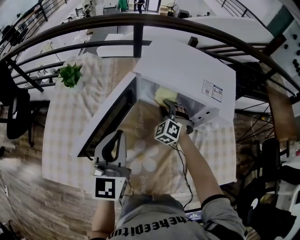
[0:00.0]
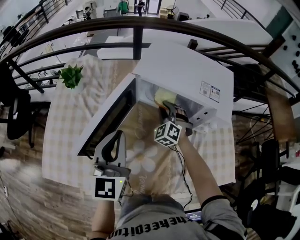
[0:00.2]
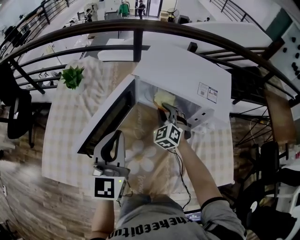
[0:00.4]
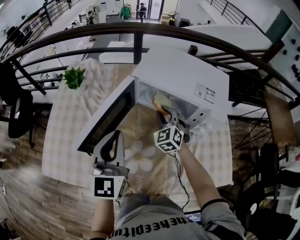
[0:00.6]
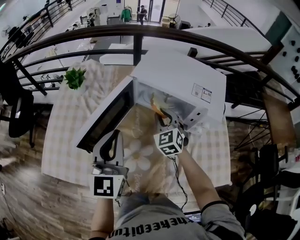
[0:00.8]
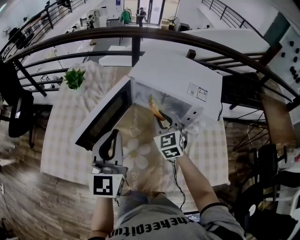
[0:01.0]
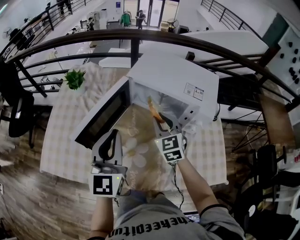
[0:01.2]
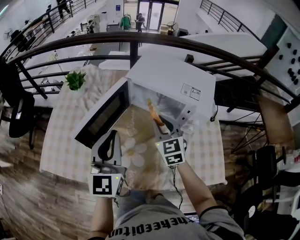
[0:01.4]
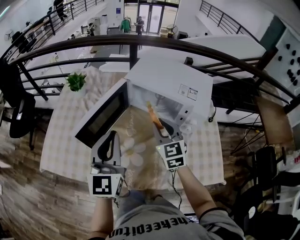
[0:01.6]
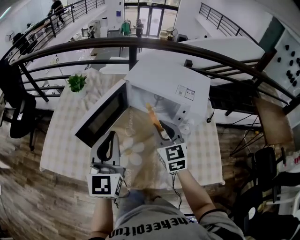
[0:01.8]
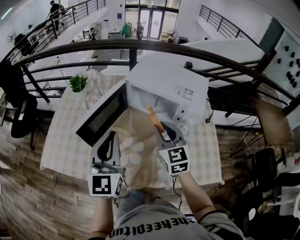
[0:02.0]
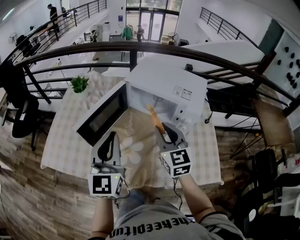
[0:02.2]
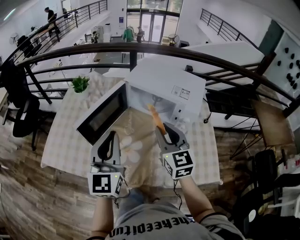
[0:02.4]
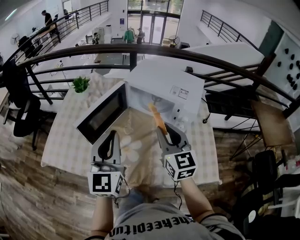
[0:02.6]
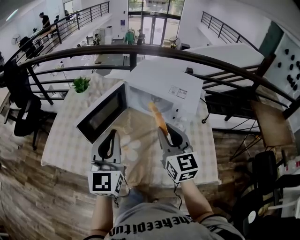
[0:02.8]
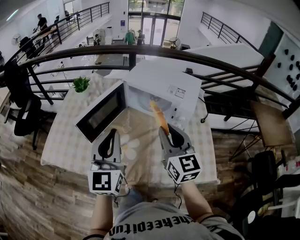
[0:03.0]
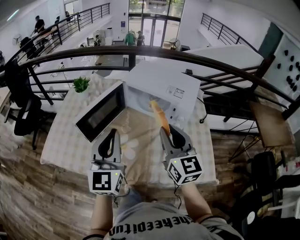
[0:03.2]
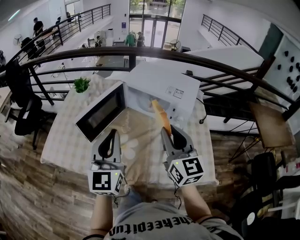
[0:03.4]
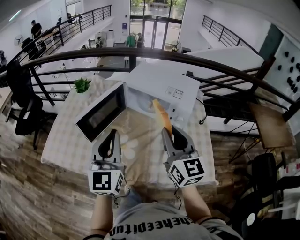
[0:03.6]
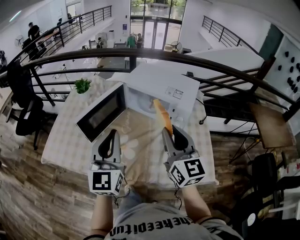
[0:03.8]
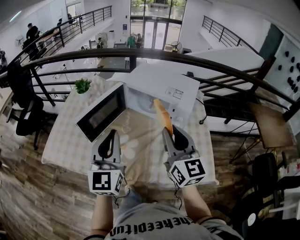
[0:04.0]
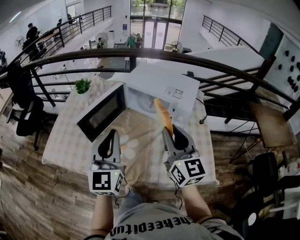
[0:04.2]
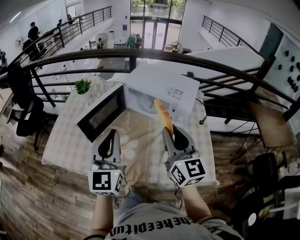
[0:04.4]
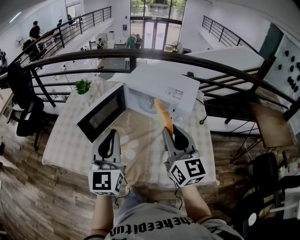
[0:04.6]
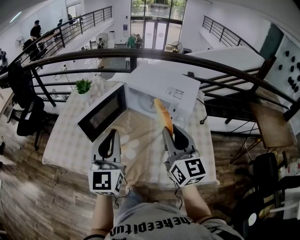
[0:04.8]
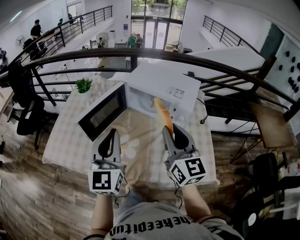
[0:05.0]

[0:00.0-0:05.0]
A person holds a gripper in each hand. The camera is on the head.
0:00.0 to 0:01.6: The left gripper travels backward and upward by approximately 10 cm. Meanwhile the right gripper heads upward and backward, covering approximately 25 cm, and turns by about 50 degrees.
0:01.6 to 0:03.4: The right gripper shifts approximately 20 cm backward, upward and to the right, and changes its angle by some 20 degrees; the left gripper is displaced backward by about 10 cm.
0:03.4 to 0:05.0: The grippers make only small movements.

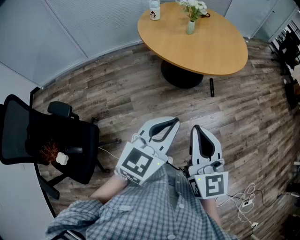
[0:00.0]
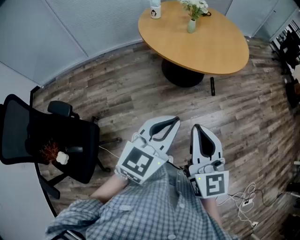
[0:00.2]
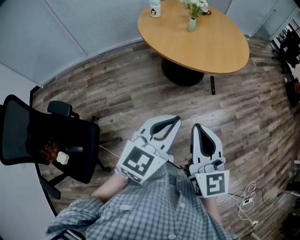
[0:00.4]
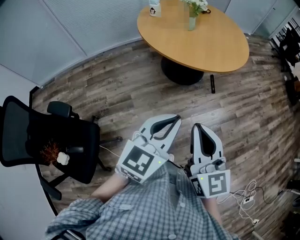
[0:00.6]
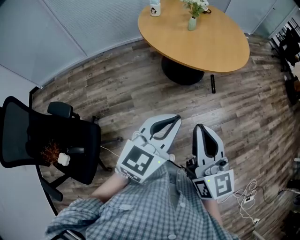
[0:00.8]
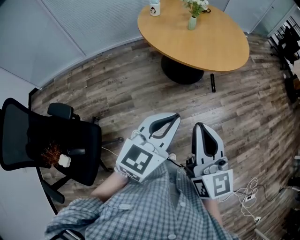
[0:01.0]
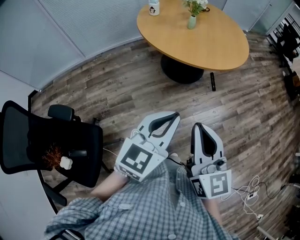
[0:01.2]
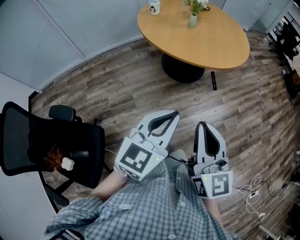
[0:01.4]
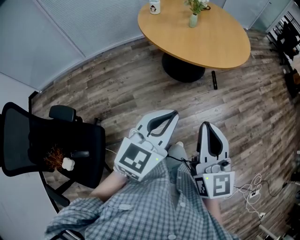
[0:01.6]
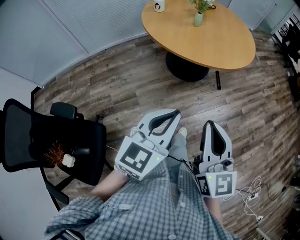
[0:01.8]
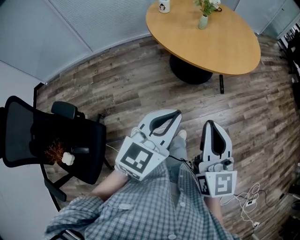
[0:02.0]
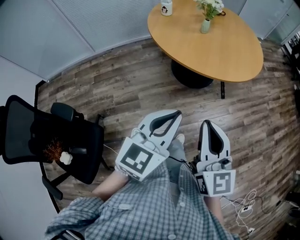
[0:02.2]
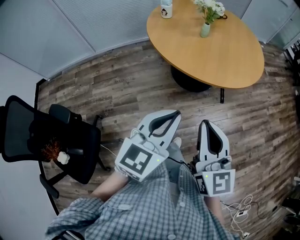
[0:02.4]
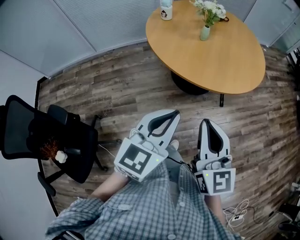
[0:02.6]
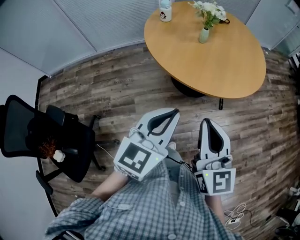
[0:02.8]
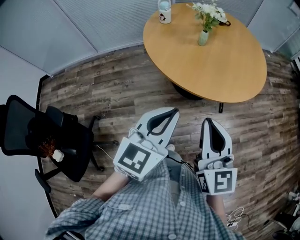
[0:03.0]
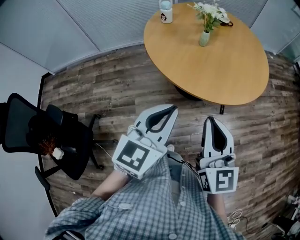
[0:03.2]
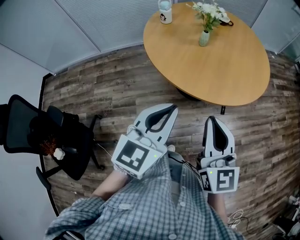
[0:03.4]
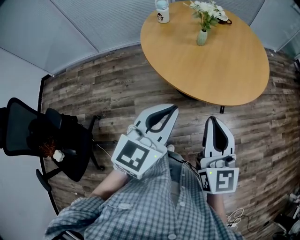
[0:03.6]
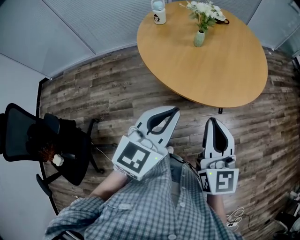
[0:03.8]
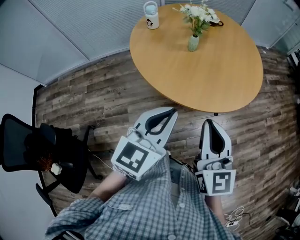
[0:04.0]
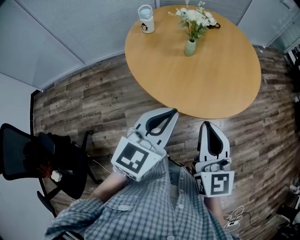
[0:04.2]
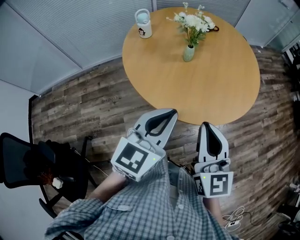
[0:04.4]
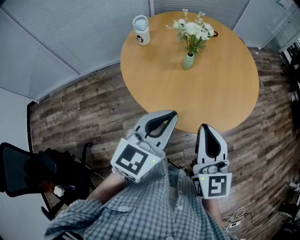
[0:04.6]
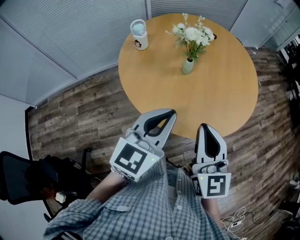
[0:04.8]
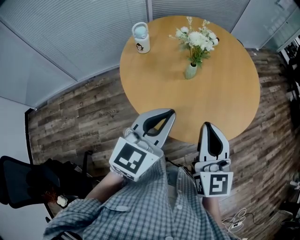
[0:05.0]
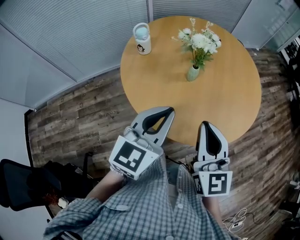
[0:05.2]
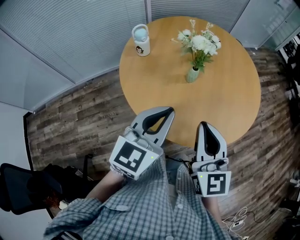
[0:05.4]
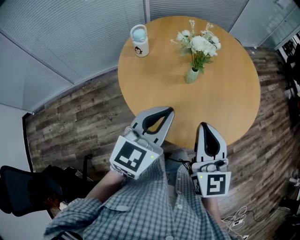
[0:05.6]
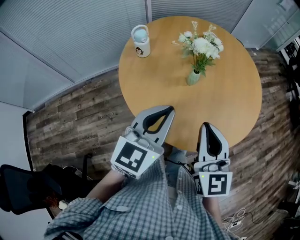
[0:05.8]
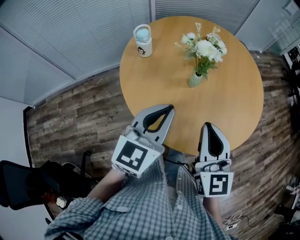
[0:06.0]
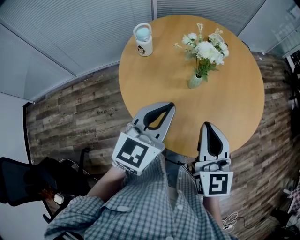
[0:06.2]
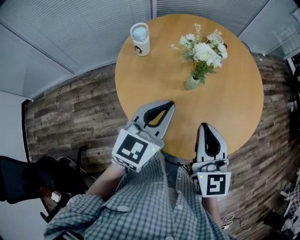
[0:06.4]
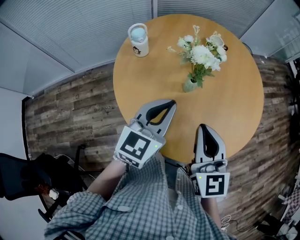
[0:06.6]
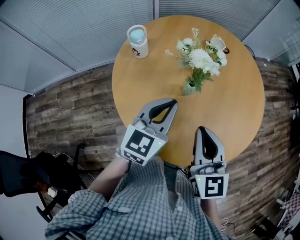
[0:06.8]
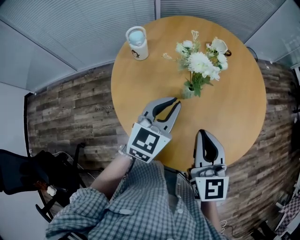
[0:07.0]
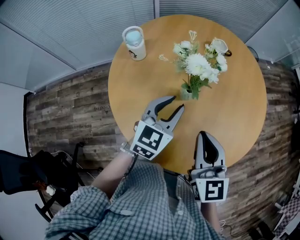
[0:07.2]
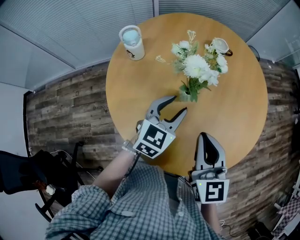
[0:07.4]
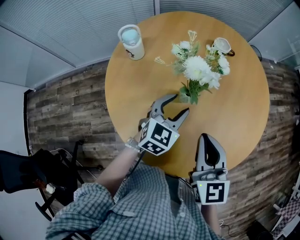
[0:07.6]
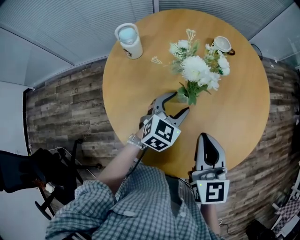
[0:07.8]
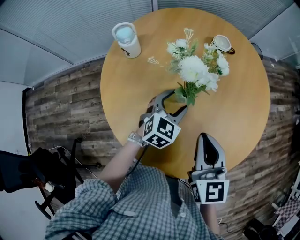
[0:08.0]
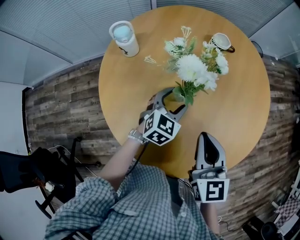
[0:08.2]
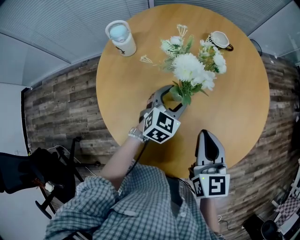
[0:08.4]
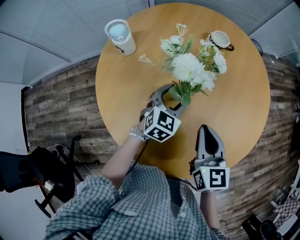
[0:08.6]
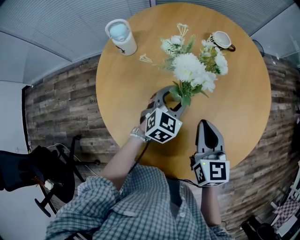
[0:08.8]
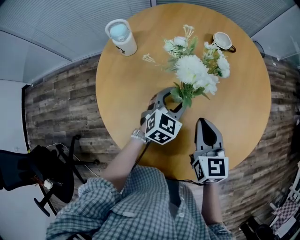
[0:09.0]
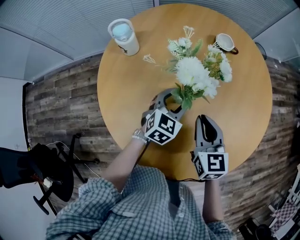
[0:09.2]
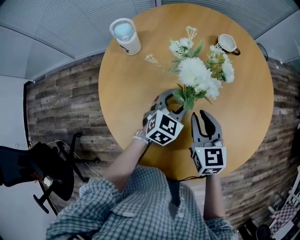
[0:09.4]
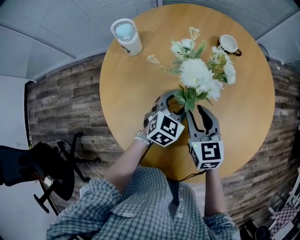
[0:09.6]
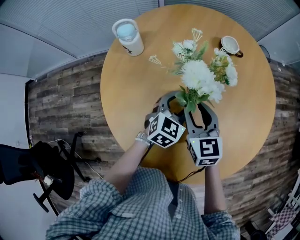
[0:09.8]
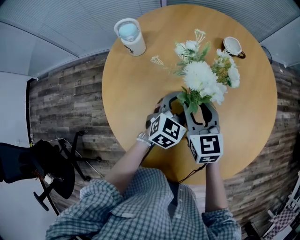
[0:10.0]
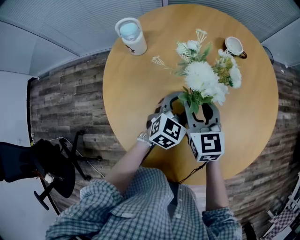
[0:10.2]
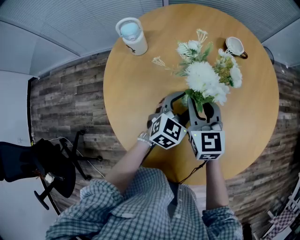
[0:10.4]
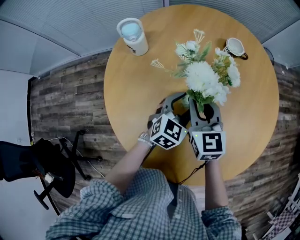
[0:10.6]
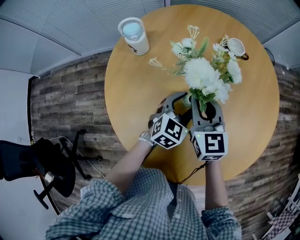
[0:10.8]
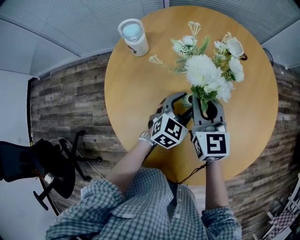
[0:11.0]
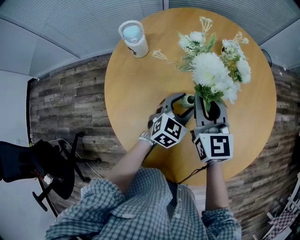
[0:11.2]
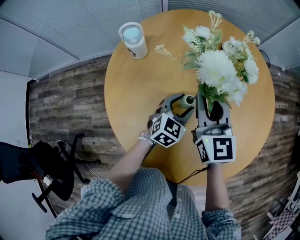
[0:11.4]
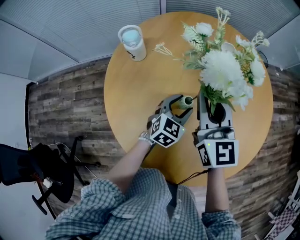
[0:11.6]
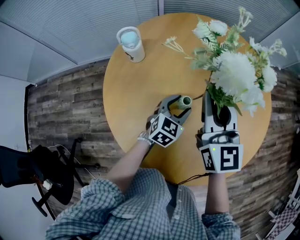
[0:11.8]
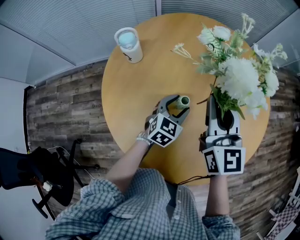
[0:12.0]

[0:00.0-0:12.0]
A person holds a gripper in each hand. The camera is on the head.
0:00.0 to 0:01.6: The left gripper heads to the left, covering some 5 cm.
0:01.6 to 0:03.0: The grippers both shift forward and to the right by approximately 25 cm.
0:03.0 to 0:04.4: The two grippers go roughly 15 cm forward.
0:04.4 to 0:06.0: The grippers both shift forward and to the left by approximately 20 cm.
0:06.0 to 0:07.6: The right gripper moves forward, to the right and downward, approximately 15 cm; the left gripper travels forward, downward and to the right by roughly 25 cm, and opens up.
0:07.6 to 0:09.0: The right gripper moves downward and forward, roughly 10 cm. Meanwhile the left gripper goes some 5 cm downward.
0:09.0 to 0:10.4: The right gripper goes roughly 10 cm forward and to the left, and opens its fingers.
0:10.4 to 0:12.0: The right gripper goes about 15 cm upward.

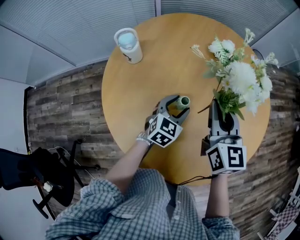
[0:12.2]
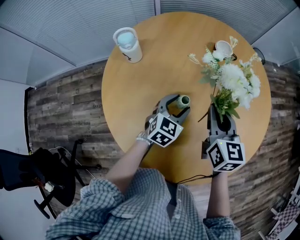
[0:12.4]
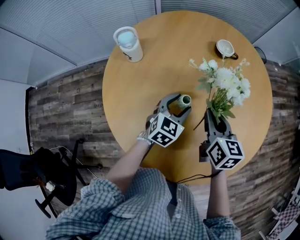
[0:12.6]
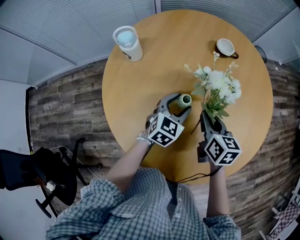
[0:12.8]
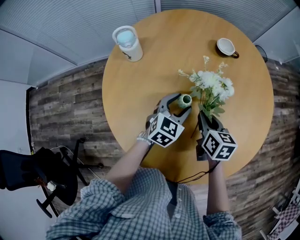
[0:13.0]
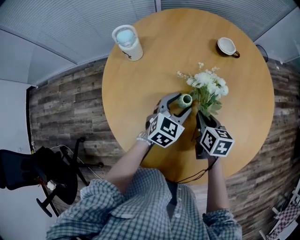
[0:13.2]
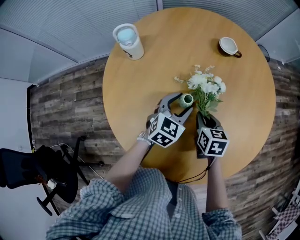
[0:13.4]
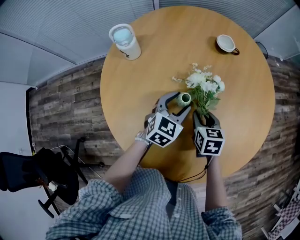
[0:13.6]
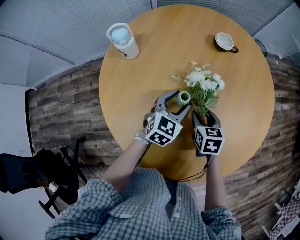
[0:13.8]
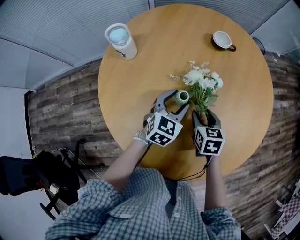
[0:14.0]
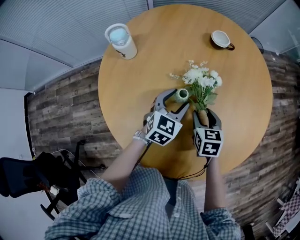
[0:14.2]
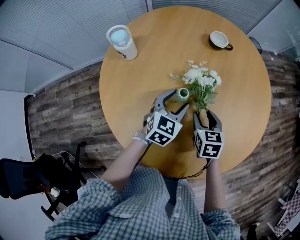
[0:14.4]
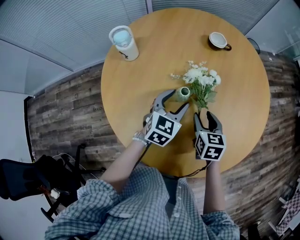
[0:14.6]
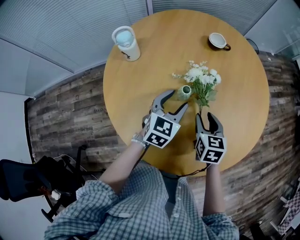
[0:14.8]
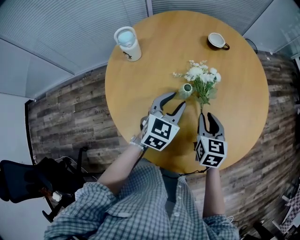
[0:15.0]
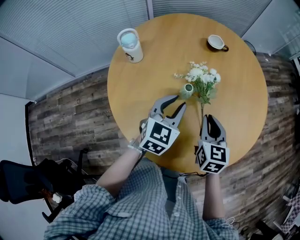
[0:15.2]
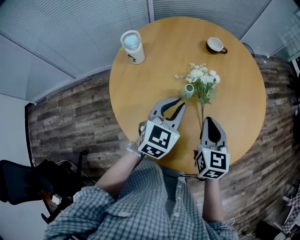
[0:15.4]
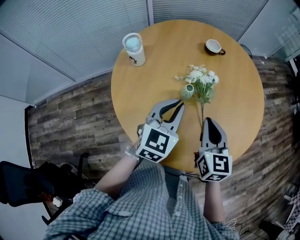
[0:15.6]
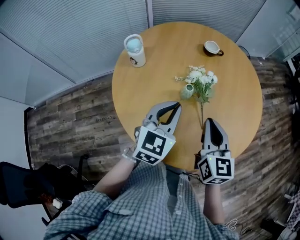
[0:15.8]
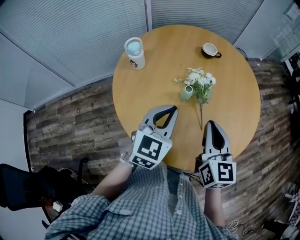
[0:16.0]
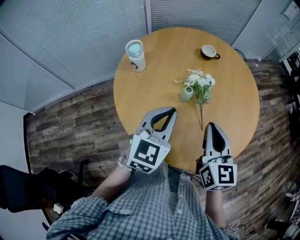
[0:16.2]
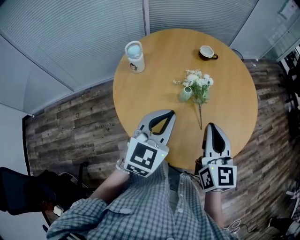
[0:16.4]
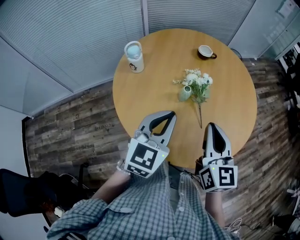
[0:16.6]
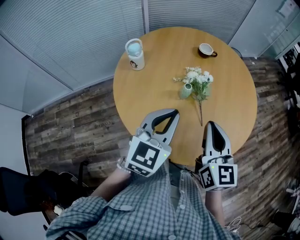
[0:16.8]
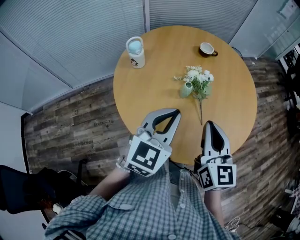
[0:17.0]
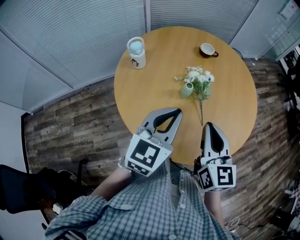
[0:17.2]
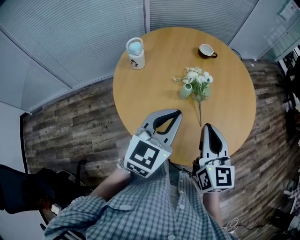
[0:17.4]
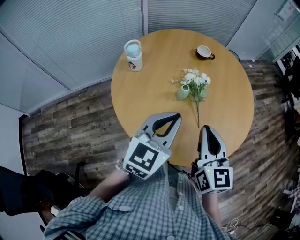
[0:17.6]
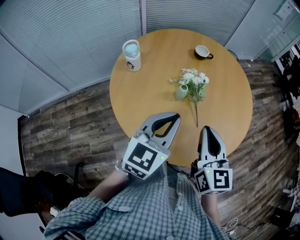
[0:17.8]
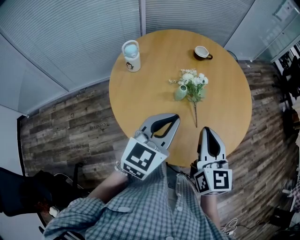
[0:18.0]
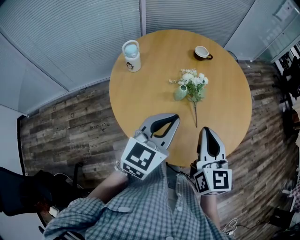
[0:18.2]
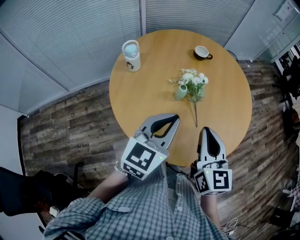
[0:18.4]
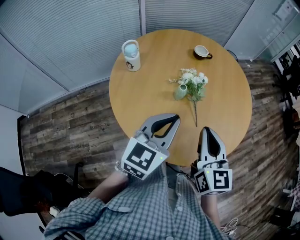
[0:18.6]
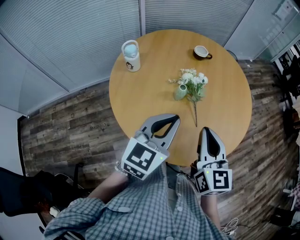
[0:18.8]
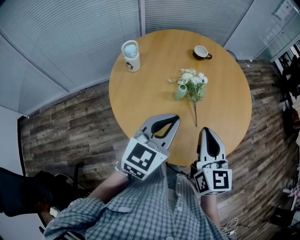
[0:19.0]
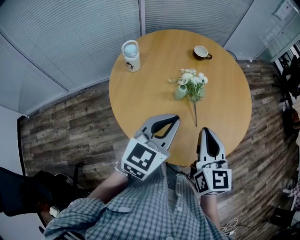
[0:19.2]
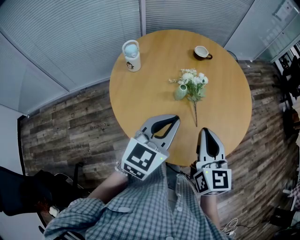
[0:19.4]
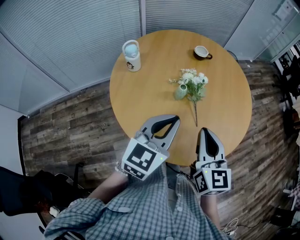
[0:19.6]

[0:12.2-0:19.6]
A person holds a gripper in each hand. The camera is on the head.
0:12.2 to 0:13.6: The right gripper moves downward, about 20 cm, and tilts its fingers roughly 30 degrees downward.
0:13.6 to 0:15.2: Both grippers travel together upward and backward, about 10 cm. The left gripper closes its fingers; the right gripper swivels approximately 20 degrees, and closes.
0:15.2 to 0:16.6: Both grippers move upward and backward, about 15 cm. The left gripper closes up.
0:16.6 to 0:18.2: The grippers move only a little.
0:18.2 to 0:19.6: Neither gripper changes place.
